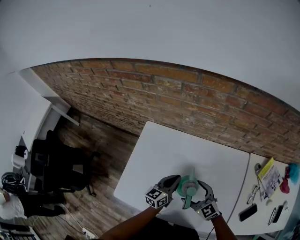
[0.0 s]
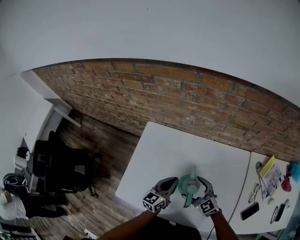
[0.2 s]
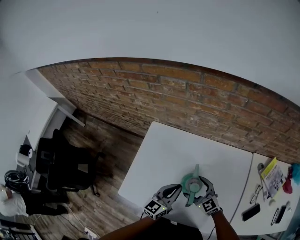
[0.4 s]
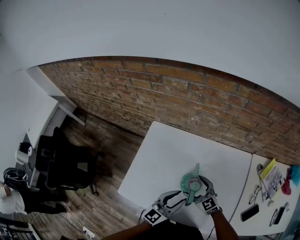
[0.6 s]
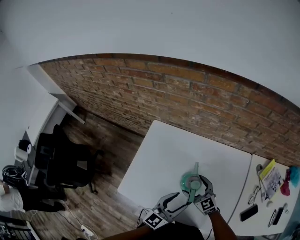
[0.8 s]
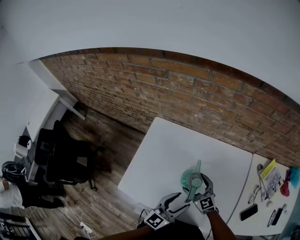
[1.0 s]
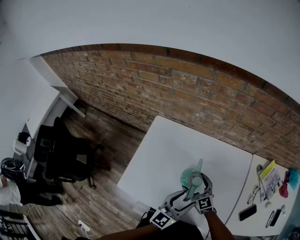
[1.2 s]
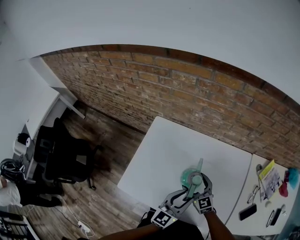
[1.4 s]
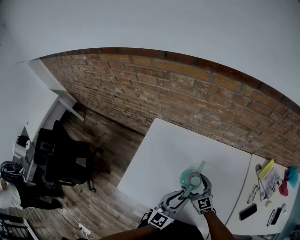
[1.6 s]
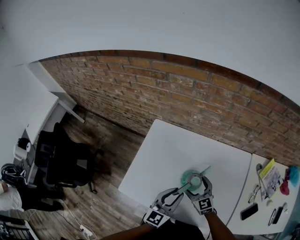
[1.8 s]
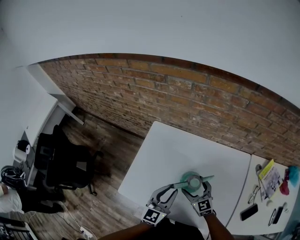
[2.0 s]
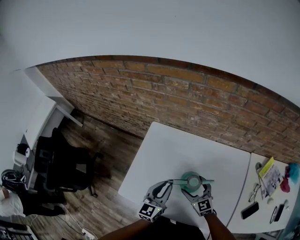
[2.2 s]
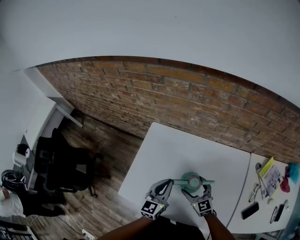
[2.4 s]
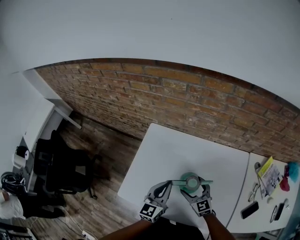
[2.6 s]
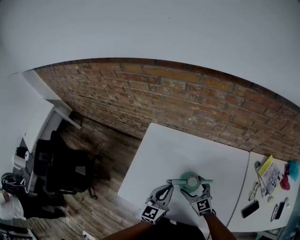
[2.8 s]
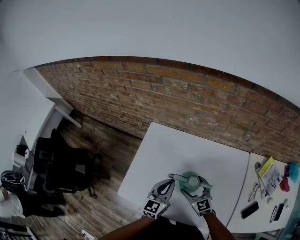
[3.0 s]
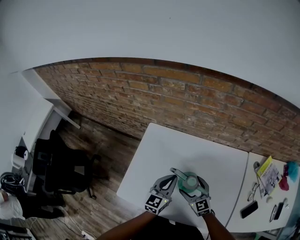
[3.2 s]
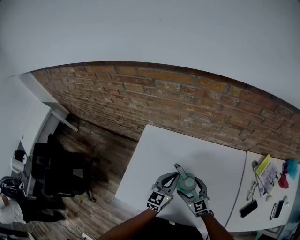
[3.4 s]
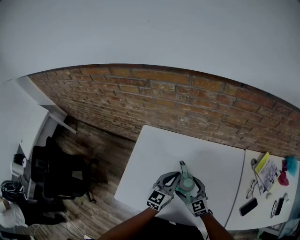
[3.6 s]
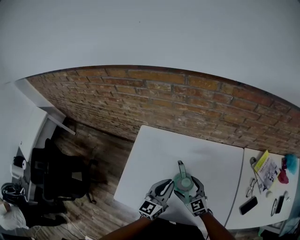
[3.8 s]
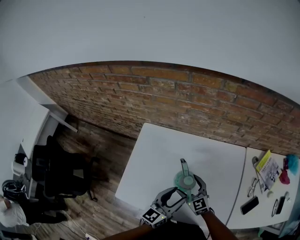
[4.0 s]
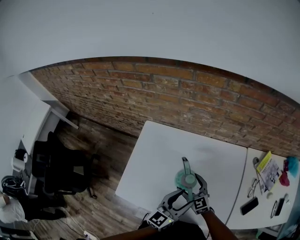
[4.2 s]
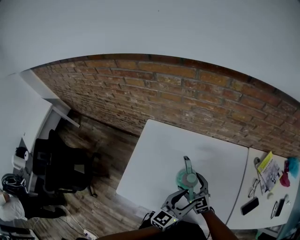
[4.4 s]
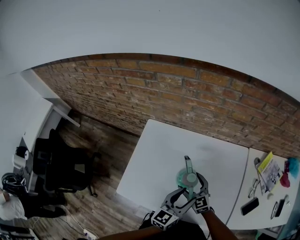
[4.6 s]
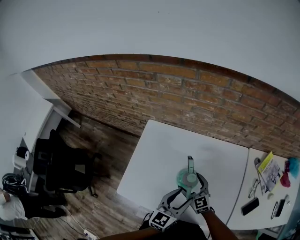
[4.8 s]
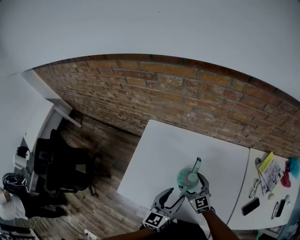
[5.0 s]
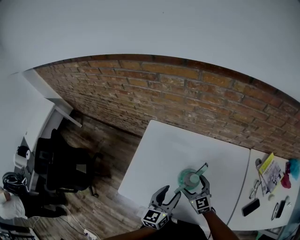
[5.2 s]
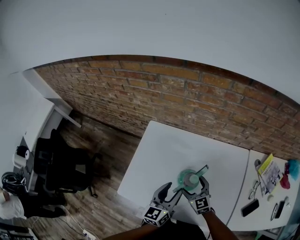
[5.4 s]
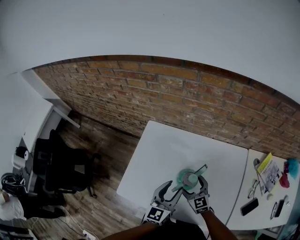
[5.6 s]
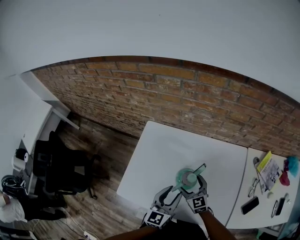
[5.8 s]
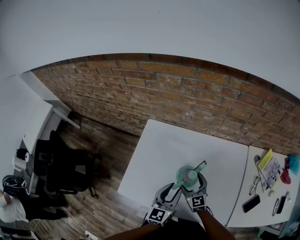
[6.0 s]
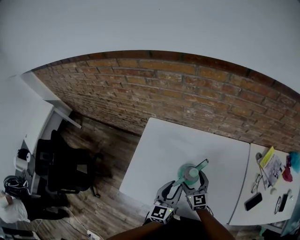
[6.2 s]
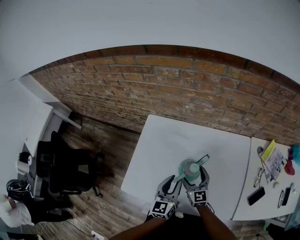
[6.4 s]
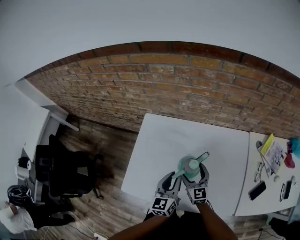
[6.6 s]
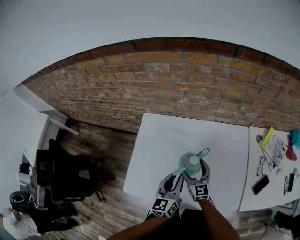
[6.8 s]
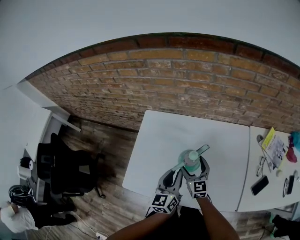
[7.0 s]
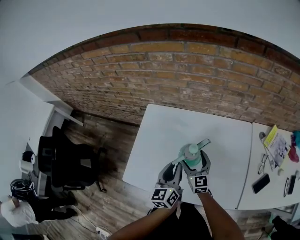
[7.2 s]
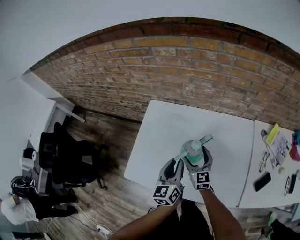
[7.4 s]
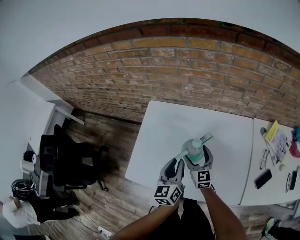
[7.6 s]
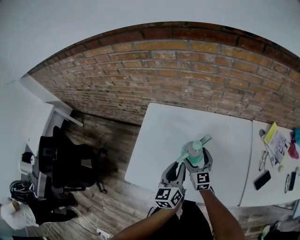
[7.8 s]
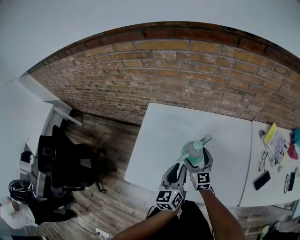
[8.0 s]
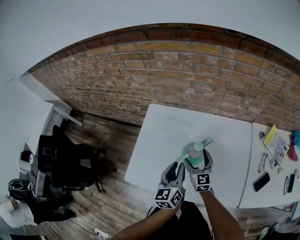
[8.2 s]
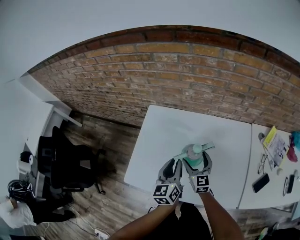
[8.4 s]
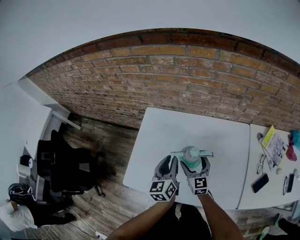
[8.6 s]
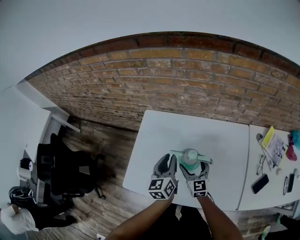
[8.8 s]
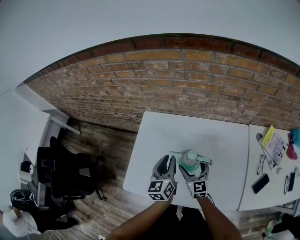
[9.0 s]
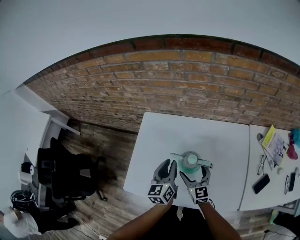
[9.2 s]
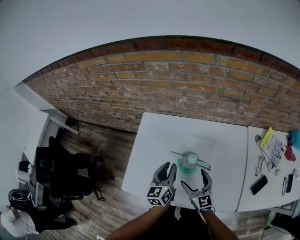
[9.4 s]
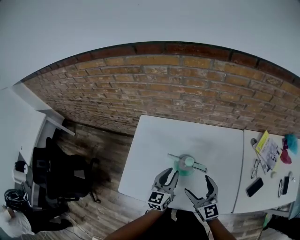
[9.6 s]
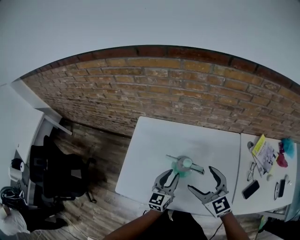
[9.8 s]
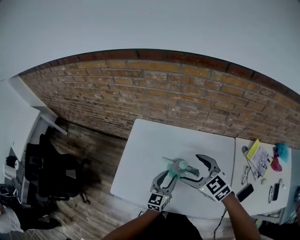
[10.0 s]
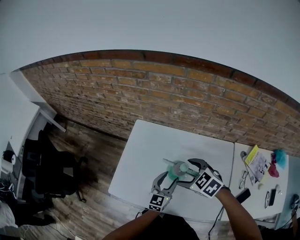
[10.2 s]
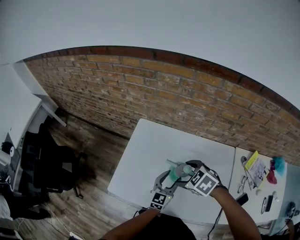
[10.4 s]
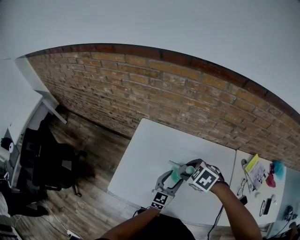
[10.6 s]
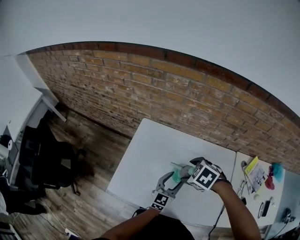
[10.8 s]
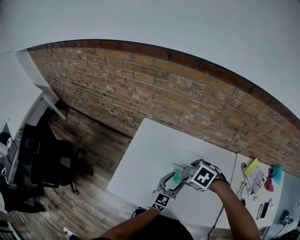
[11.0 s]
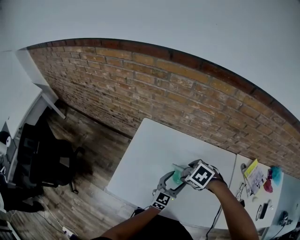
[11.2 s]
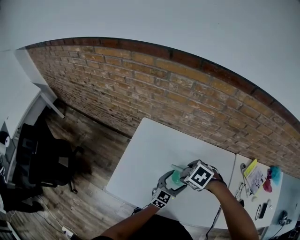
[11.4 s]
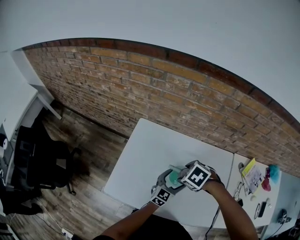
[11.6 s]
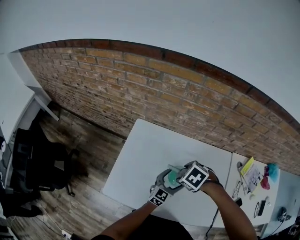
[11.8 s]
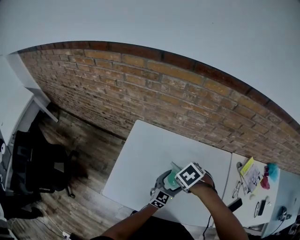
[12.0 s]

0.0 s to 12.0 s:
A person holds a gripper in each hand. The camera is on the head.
0.0 to 1.6 s: The left gripper goes some 15 cm backward and upward.
1.6 to 3.0 s: The left gripper goes some 10 cm forward and to the left.
3.0 to 4.4 s: The left gripper heads to the right and backward, covering roughly 15 cm, and opens.
4.4 to 6.0 s: The left gripper is displaced to the left by some 10 cm, and changes its angle by some 20 degrees.
6.0 to 7.6 s: The grippers move only a little.
7.6 to 9.0 s: The left gripper is displaced forward by some 5 cm.
9.0 to 10.4 s: The right gripper shifts about 10 cm upward, and angles its fingers downward, by approximately 40 degrees. The left gripper heads to the right and downward, covering some 10 cm, and changes its angle by about 20 degrees.
10.4 to 12.0 s: The left gripper changes place by some 5 cm, and opens its fingers, while the right gripper moves roughly 5 cm, and rotates about 30 degrees.

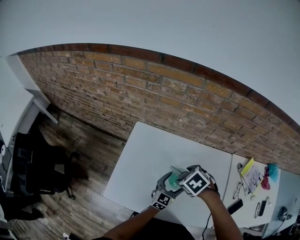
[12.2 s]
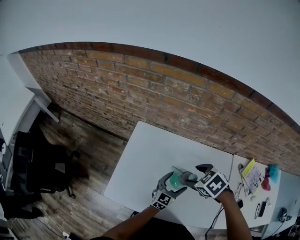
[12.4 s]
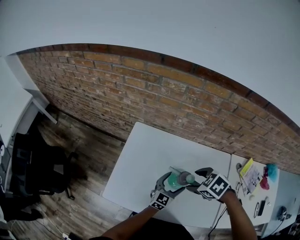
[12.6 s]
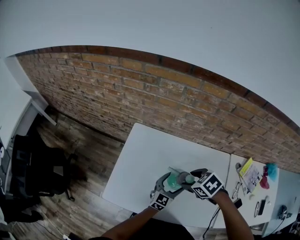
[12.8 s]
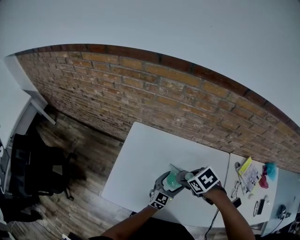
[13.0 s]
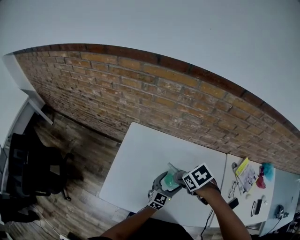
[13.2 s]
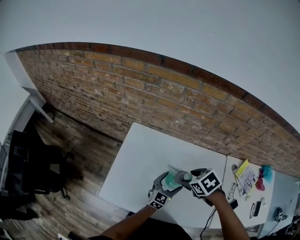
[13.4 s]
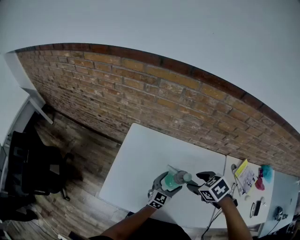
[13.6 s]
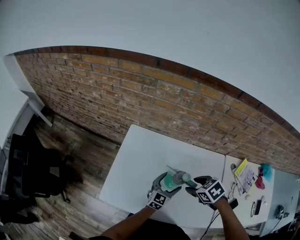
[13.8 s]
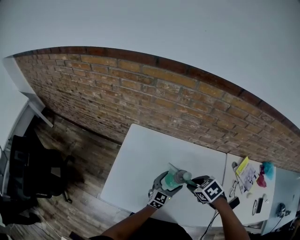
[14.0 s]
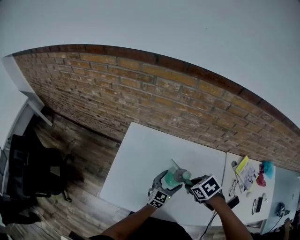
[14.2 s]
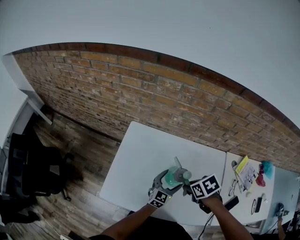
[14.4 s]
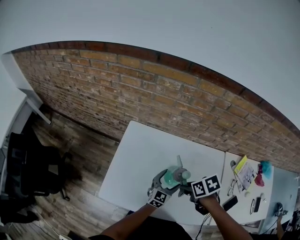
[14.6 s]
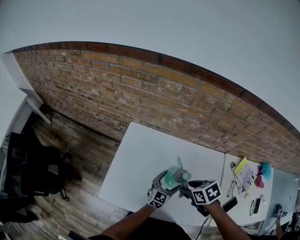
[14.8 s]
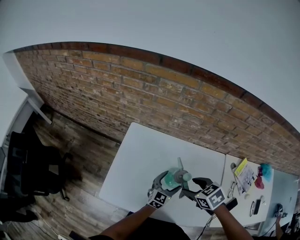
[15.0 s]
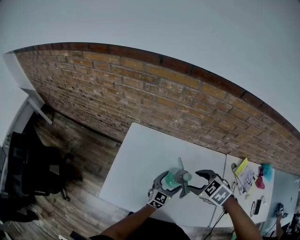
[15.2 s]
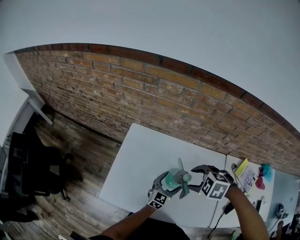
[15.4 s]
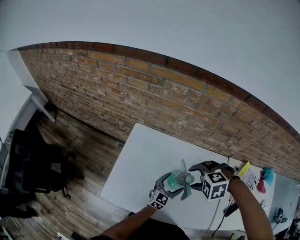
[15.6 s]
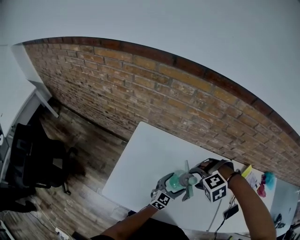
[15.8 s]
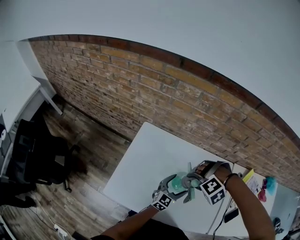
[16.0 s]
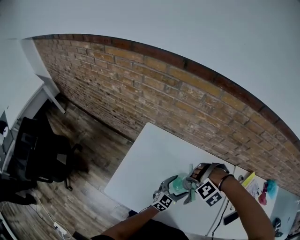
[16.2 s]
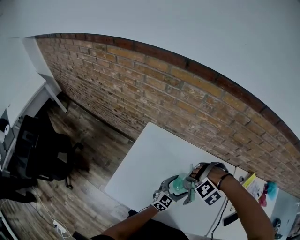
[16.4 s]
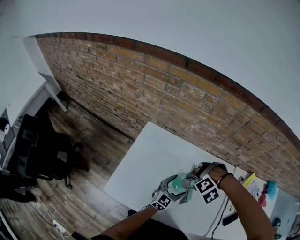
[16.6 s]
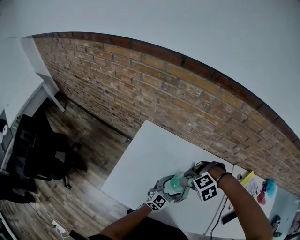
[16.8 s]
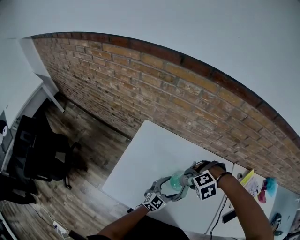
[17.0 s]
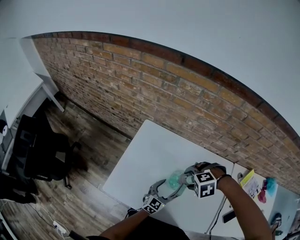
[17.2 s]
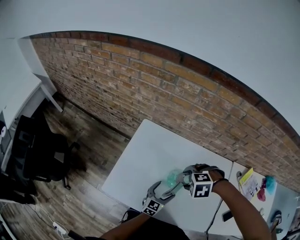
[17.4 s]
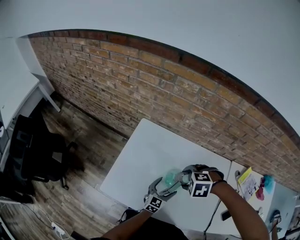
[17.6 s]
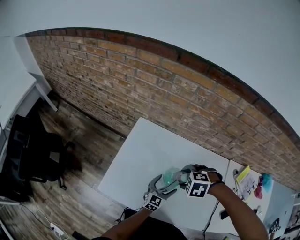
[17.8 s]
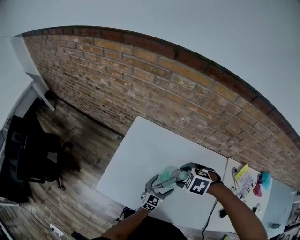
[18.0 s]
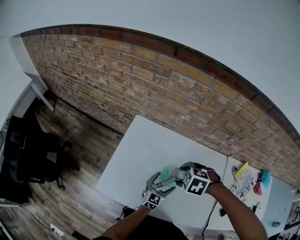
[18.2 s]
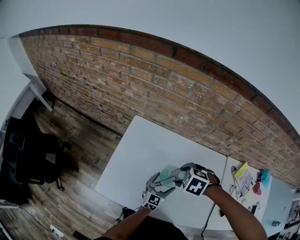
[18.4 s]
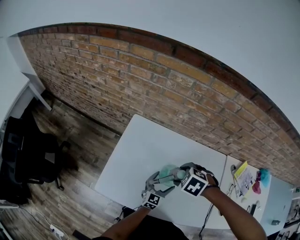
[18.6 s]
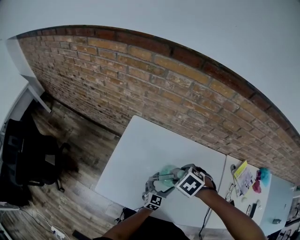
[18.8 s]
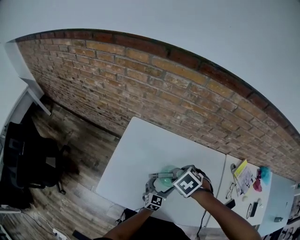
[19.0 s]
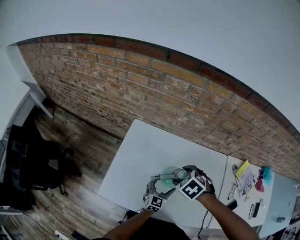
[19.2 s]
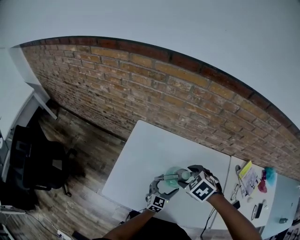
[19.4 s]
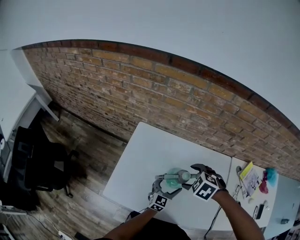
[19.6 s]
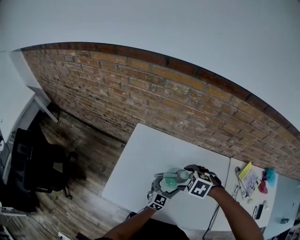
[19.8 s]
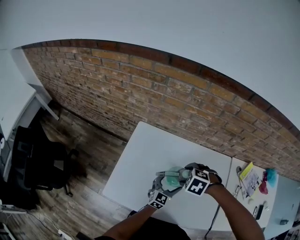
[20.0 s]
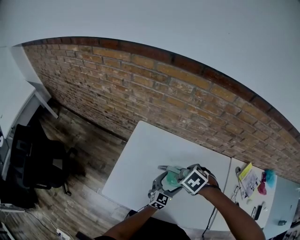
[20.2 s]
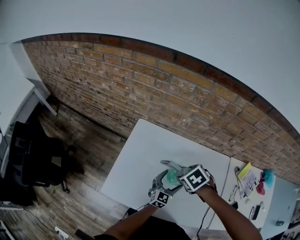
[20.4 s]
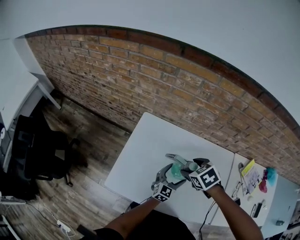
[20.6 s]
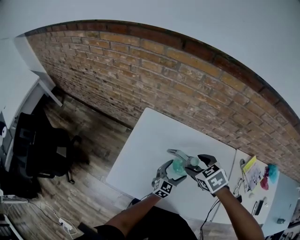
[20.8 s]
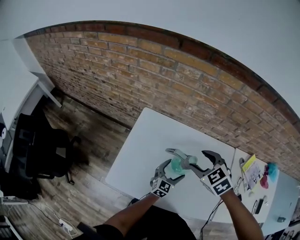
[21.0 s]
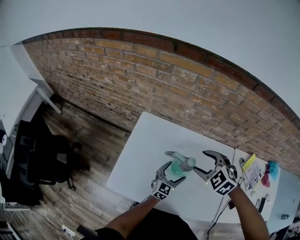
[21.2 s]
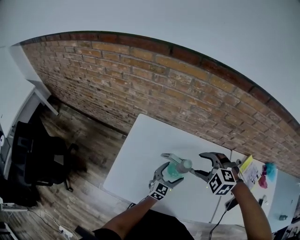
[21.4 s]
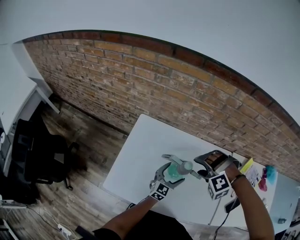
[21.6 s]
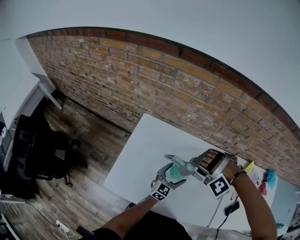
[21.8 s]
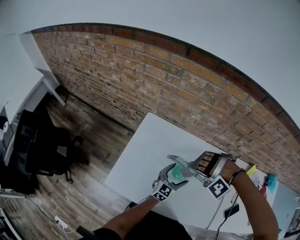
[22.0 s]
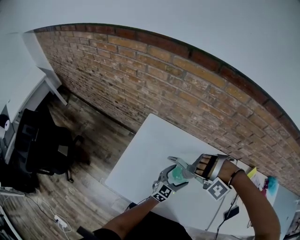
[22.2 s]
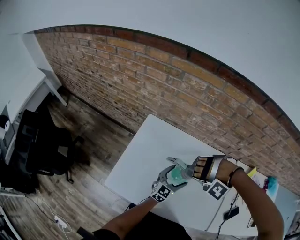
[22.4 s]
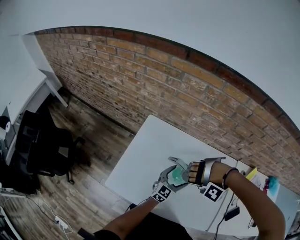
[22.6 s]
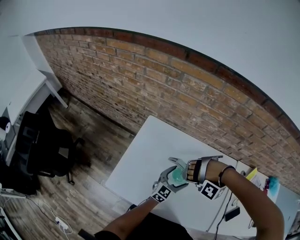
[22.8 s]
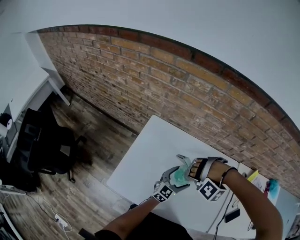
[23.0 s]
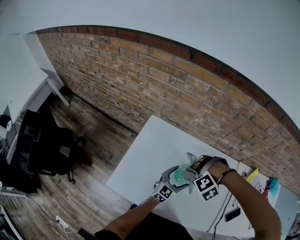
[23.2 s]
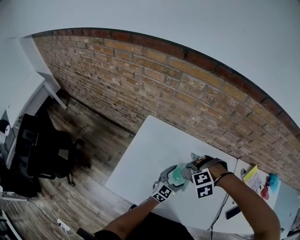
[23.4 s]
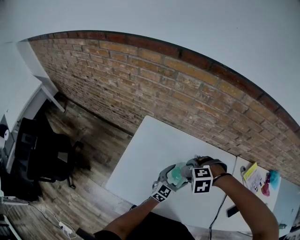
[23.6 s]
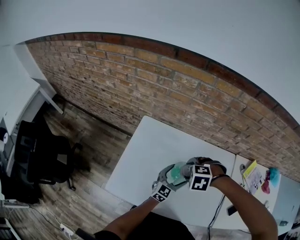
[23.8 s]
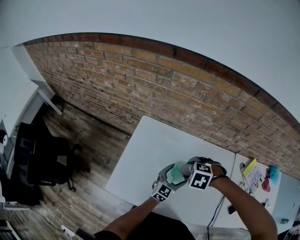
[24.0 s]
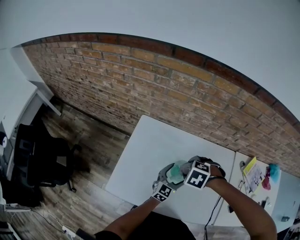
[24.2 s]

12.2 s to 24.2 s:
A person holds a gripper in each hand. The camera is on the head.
12.2 to 13.8 s: The right gripper shifts by about 10 cm.
13.8 to 15.2 s: The right gripper changes place by about 5 cm.
15.2 to 16.6 s: The right gripper moves downward, some 5 cm, and rolls counterclockwise, seen from behind, by about 80 degrees.
16.6 to 18.2 s: The left gripper travels downward by some 5 cm, while the right gripper rotates around the line of its fingers by some 50 degrees, clockwise from behind.
19.8 to 21.2 s: The right gripper goes about 5 cm upward, and rotates roughly 20 degrees.
21.2 to 22.6 s: The right gripper heads downward, covering about 5 cm, and rolls counterclockwise, seen from behind, by about 110 degrees.
22.6 to 24.2 s: The right gripper rolls clockwise, seen from behind, by some 110 degrees.
